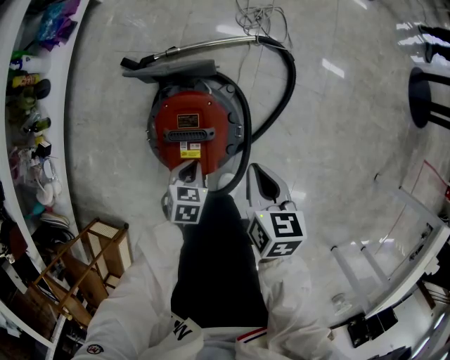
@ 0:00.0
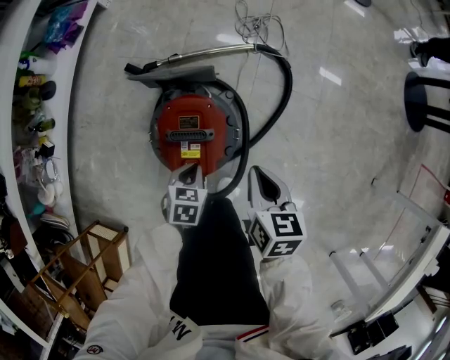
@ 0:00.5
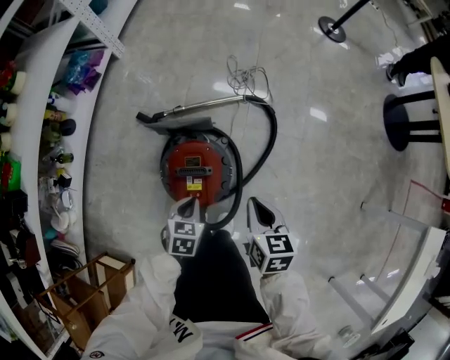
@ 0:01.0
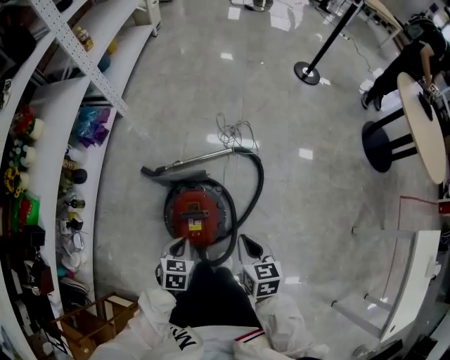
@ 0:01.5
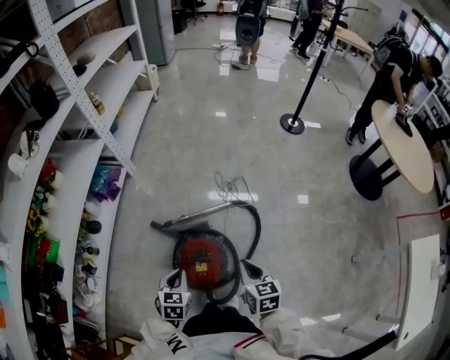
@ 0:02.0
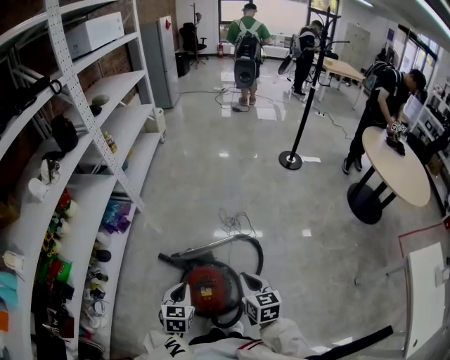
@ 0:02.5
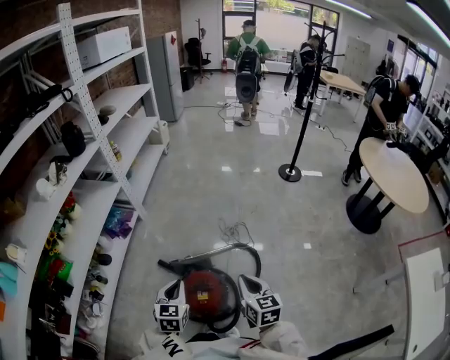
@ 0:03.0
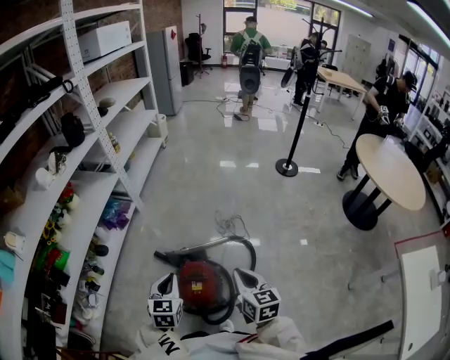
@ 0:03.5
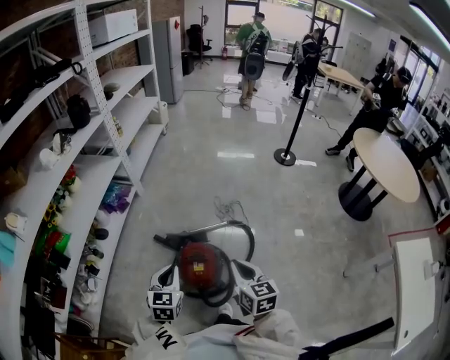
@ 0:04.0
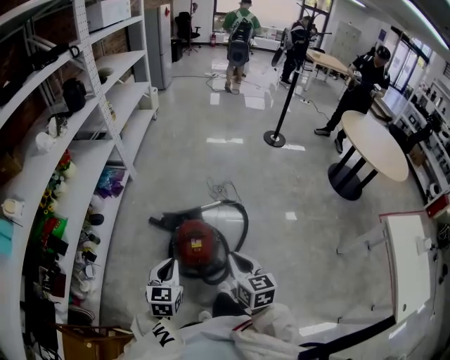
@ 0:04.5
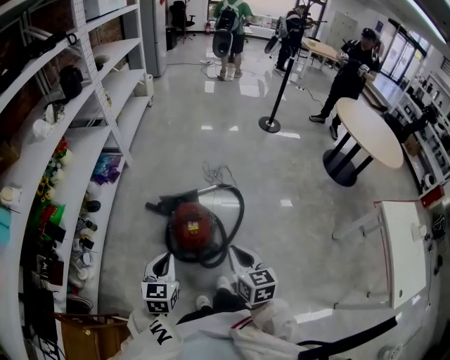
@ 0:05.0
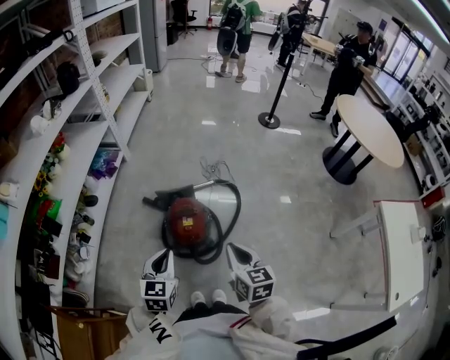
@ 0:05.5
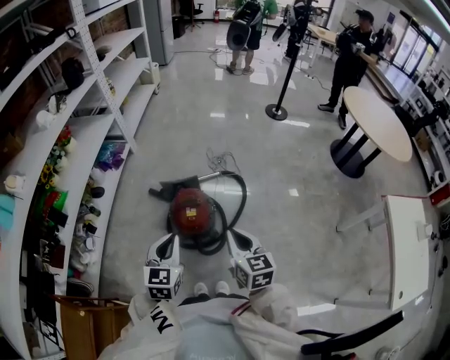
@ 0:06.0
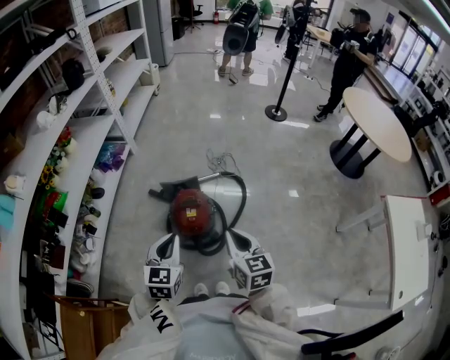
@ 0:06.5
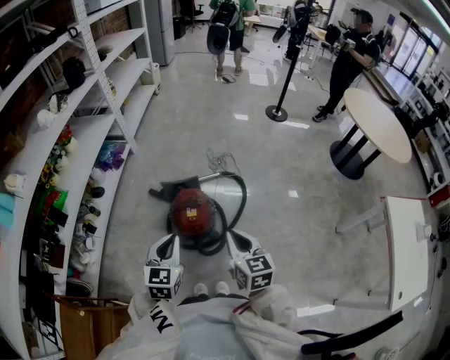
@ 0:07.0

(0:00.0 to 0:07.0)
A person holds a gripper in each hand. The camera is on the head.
0:00.0 - 0:02.0: The two grippers go about 25 cm upward. The left gripper turns by approximately 20 degrees.
0:02.0 - 0:03.5: The grippers both shift upward by some 15 cm.
0:03.5 - 0:05.0: The two grippers go about 20 cm backward.
0:05.0 - 0:07.0: The left gripper moves to the right, approximately 5 cm.

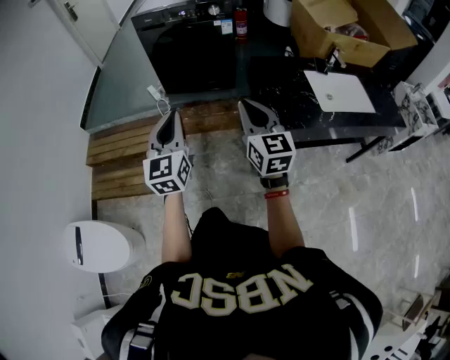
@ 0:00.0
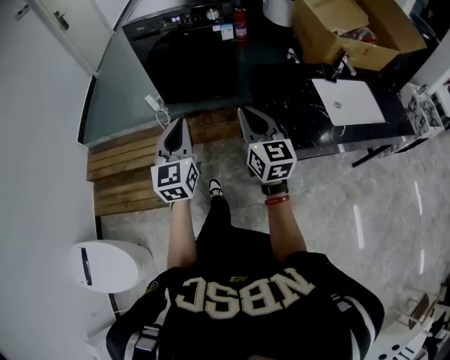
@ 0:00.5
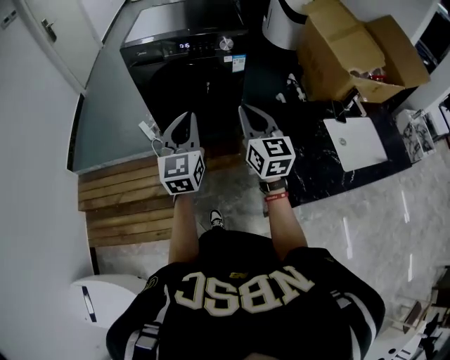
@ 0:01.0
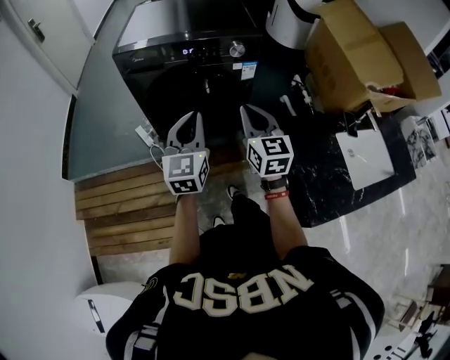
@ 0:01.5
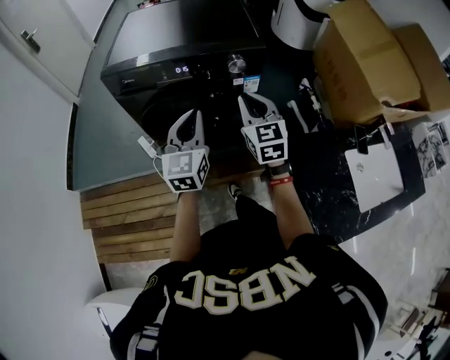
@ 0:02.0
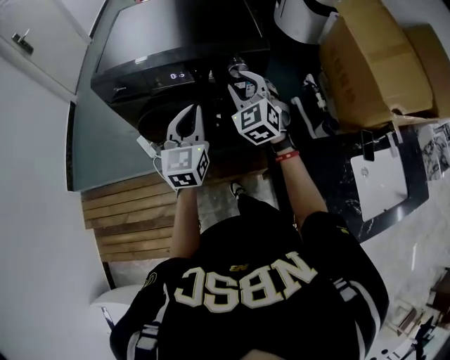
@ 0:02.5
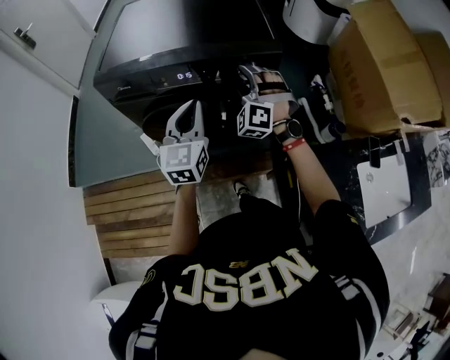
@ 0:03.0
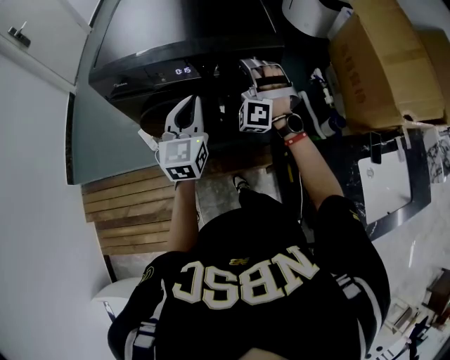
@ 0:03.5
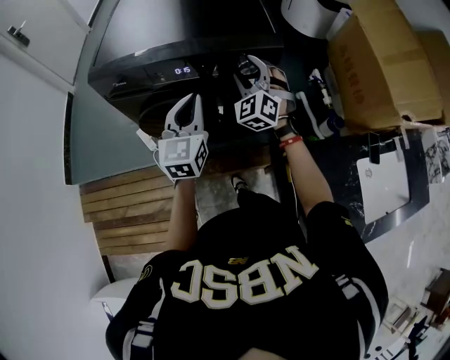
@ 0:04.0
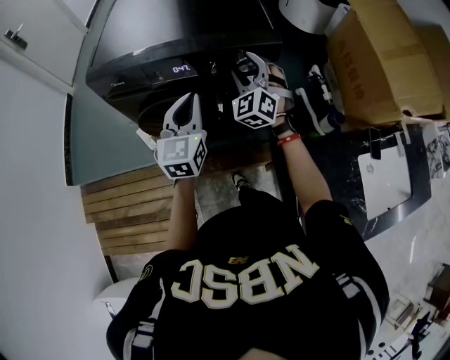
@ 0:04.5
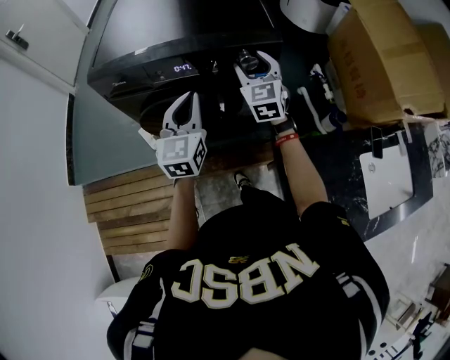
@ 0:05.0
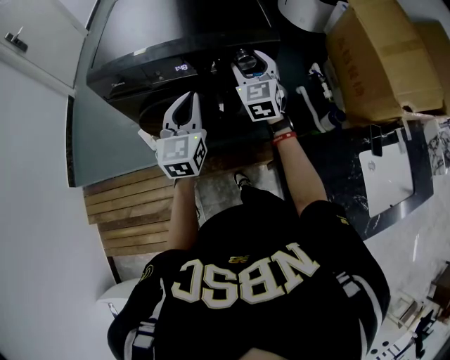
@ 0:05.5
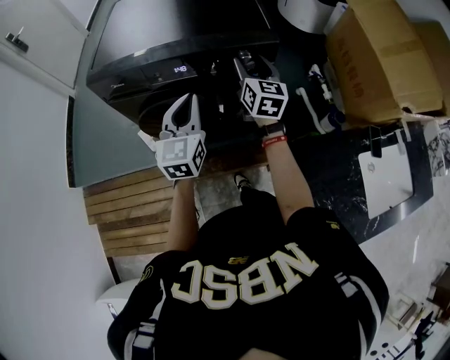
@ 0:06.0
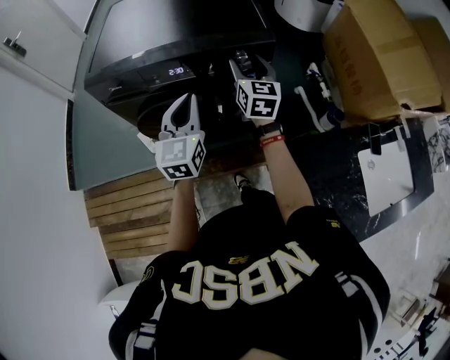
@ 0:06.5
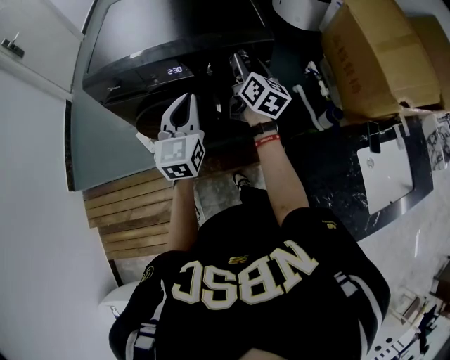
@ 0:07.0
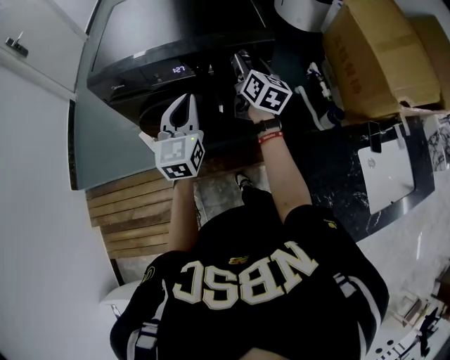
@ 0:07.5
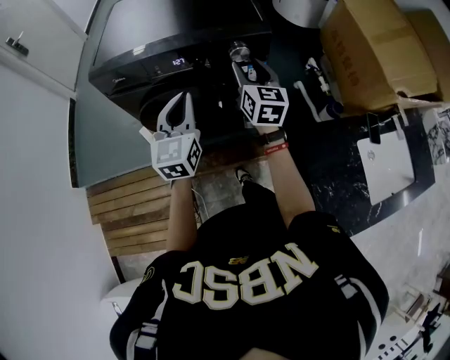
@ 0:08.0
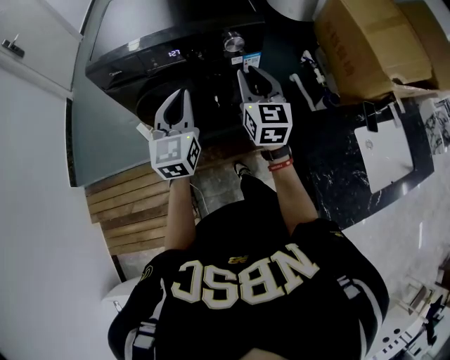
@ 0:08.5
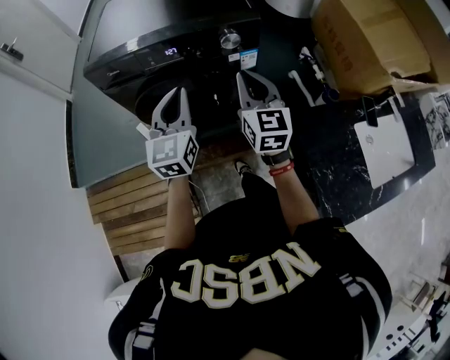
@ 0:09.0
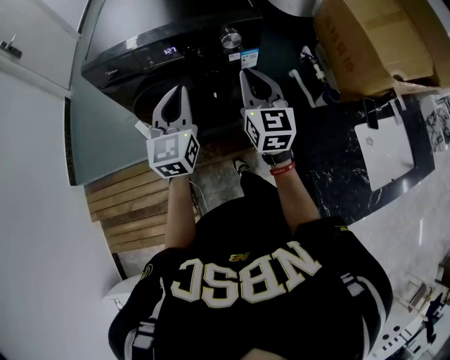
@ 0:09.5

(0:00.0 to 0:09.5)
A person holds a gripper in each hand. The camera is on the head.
0:00.0 - 0:02.0: Both grippers are carried forward, roughly 60 cm.
0:02.0 - 0:04.0: The left gripper travels forward by some 10 cm. The right gripper heads forward, covering roughly 15 cm, rotates around the line of its fingers by some 40 degrees, counterclockwise from behind, and opens up.
0:04.0 - 0:05.5: The right gripper turns by about 30 degrees.
0:05.5 - 0:07.5: The right gripper rolls clockwise, seen from behind, by roughly 50 degrees.
0:07.5 - 0:09.5: The left gripper heads backward, covering about 5 cm. Meanwhile the right gripper heads backward, covering roughly 15 cm, turns by approximately 30 degrees, and closes its fingers.

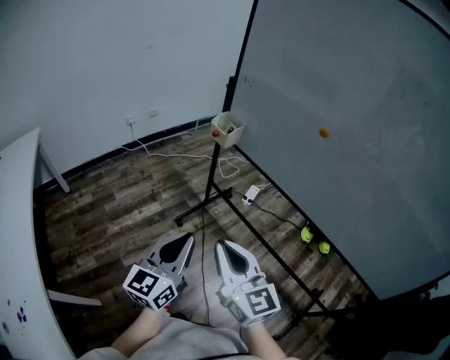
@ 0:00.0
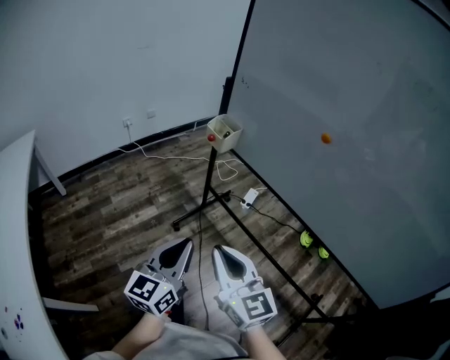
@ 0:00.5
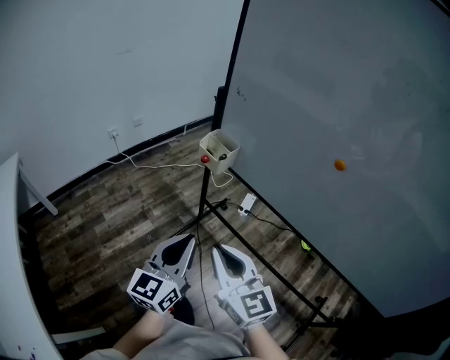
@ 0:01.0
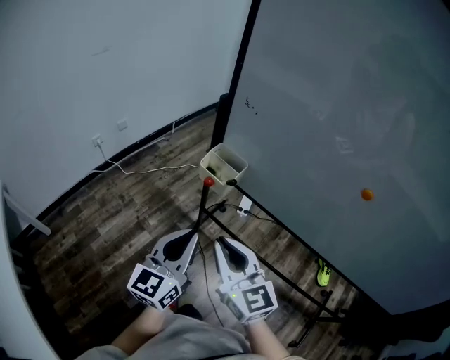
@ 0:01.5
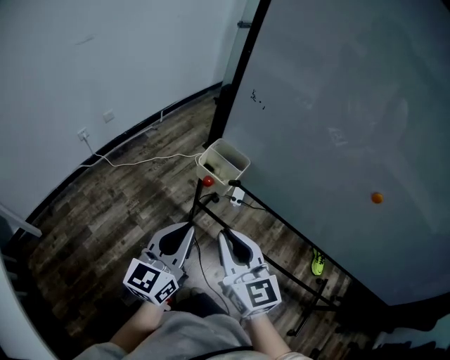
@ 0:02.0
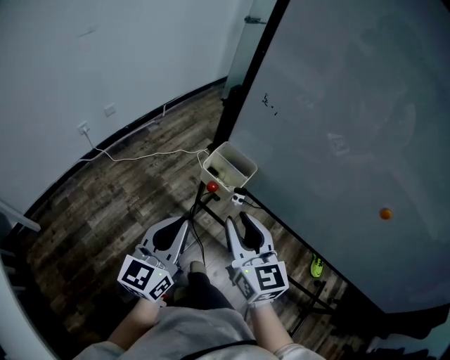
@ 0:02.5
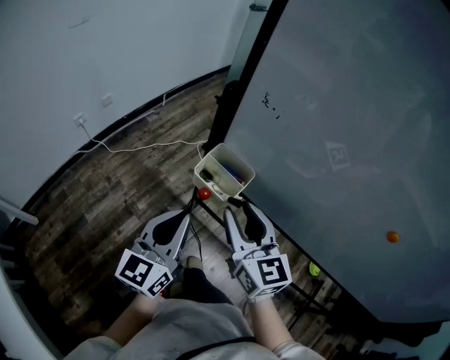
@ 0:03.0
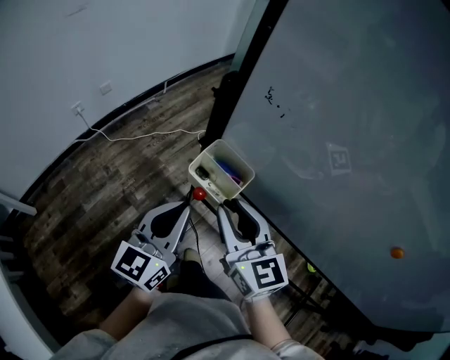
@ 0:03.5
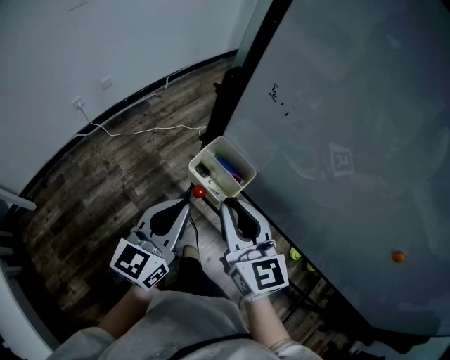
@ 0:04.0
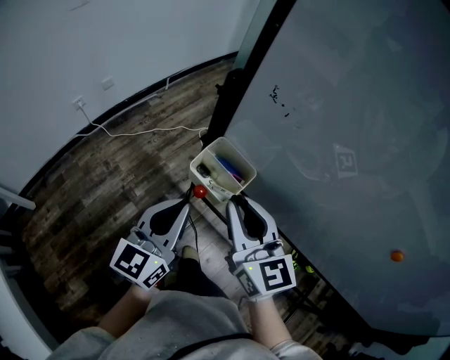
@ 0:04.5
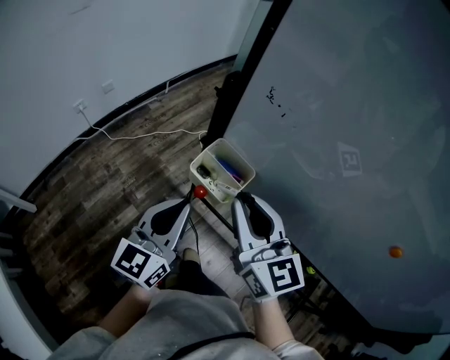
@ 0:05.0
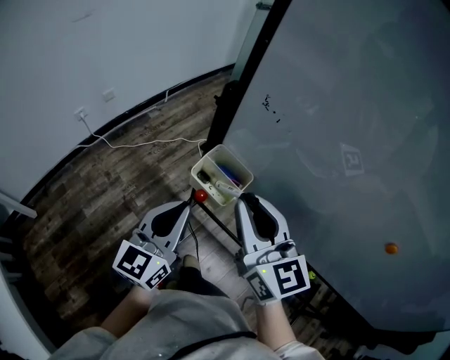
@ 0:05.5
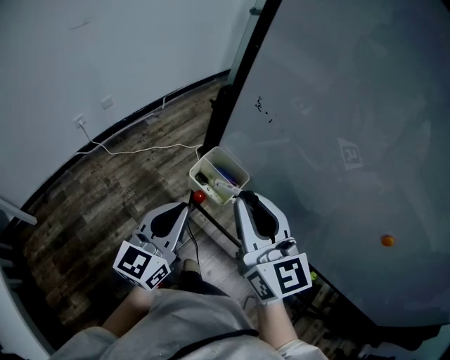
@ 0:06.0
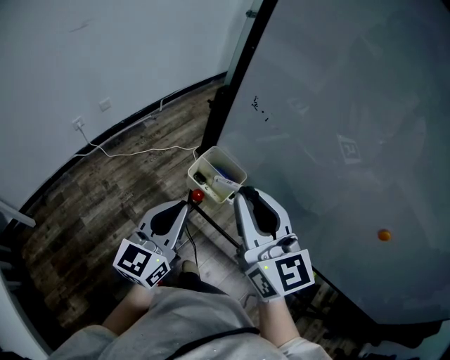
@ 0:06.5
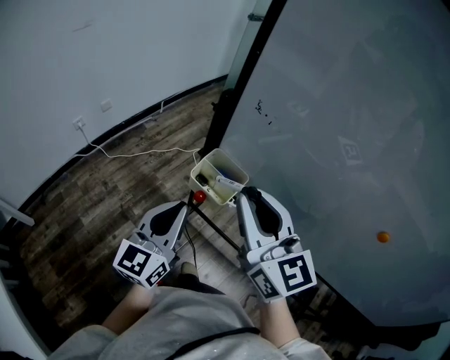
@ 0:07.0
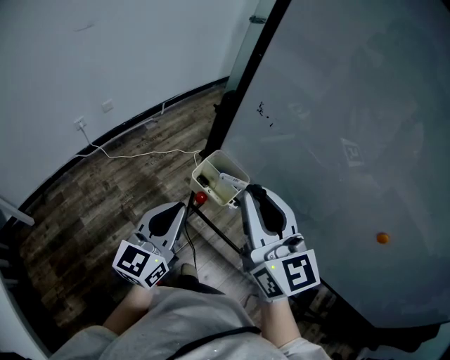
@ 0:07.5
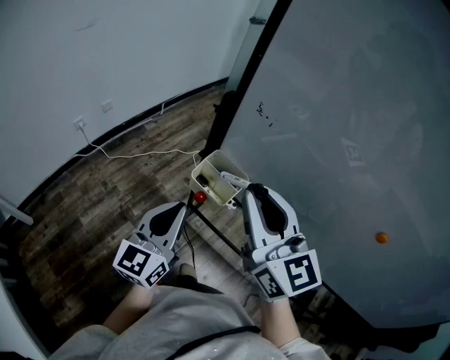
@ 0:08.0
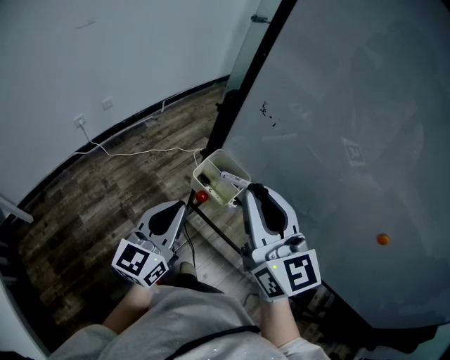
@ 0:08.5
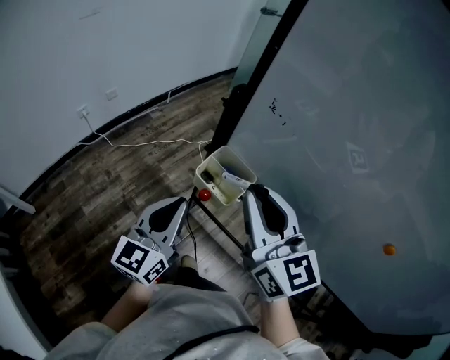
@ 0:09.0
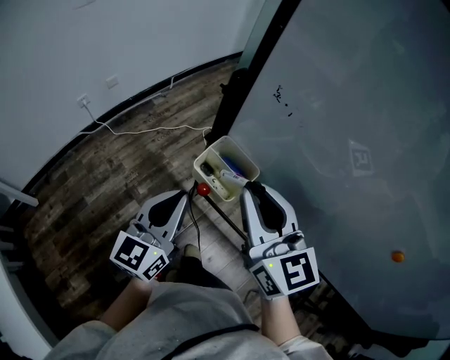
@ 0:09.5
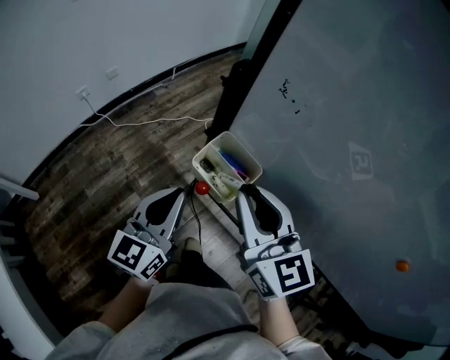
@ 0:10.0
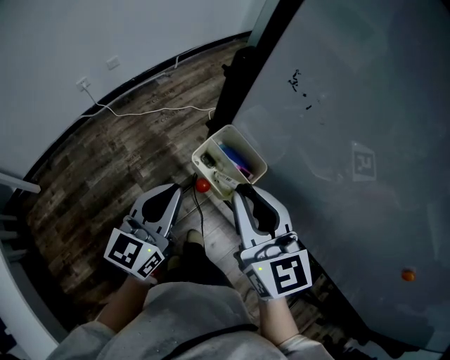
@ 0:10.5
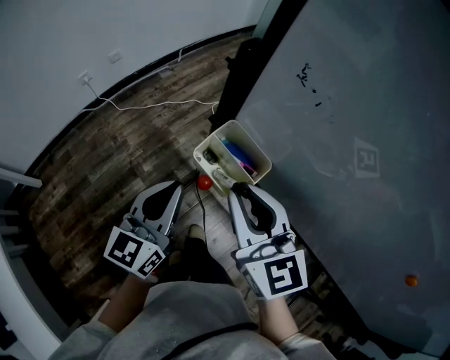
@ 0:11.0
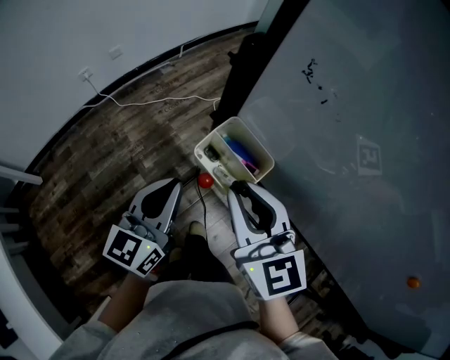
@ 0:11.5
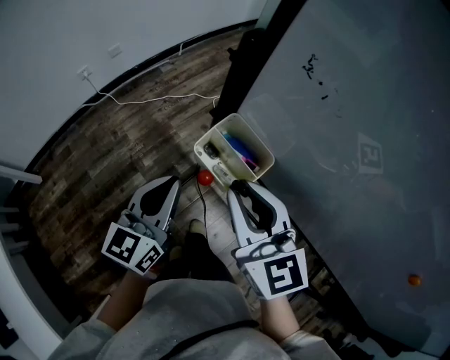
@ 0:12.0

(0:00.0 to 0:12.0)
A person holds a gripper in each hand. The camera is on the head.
0:00.0 - 0:02.0: The two grippers travel together, forward, about 40 cm.
0:02.0 - 0:04.0: The two grippers go about 15 cm forward.
0:04.0 - 0:06.0: The right gripper goes approximately 10 cm upward.
0:06.0 - 0:08.0: The grippers stay close to where they were, moving slightly.
0:08.0 - 0:10.0: The right gripper moves downward, approximately 10 cm, while the left gripper shifts by approximately 5 cm.
0:10.0 - 0:12.0: There are only small adjustments of the grippers.
